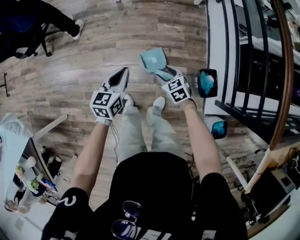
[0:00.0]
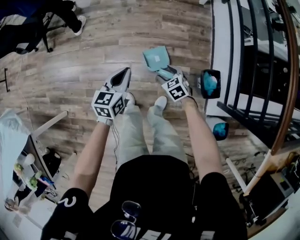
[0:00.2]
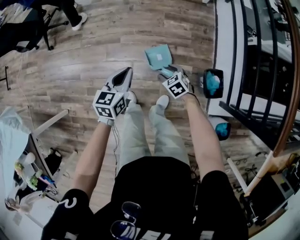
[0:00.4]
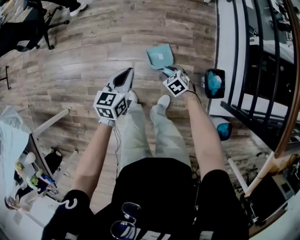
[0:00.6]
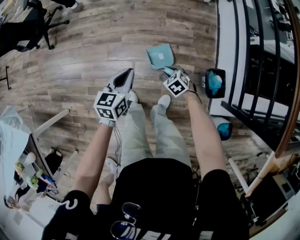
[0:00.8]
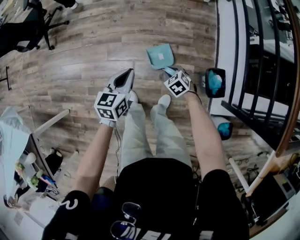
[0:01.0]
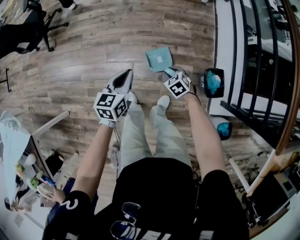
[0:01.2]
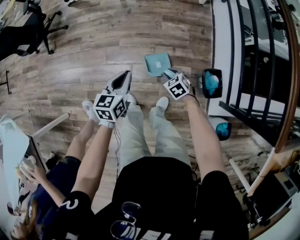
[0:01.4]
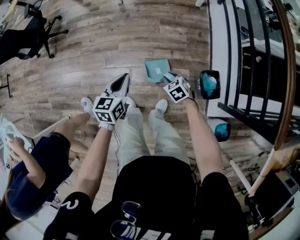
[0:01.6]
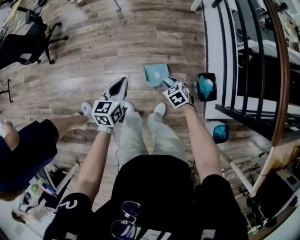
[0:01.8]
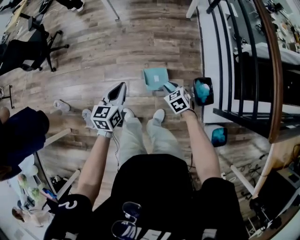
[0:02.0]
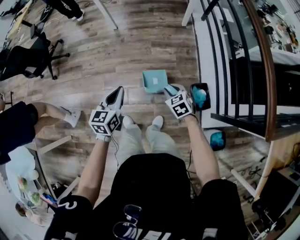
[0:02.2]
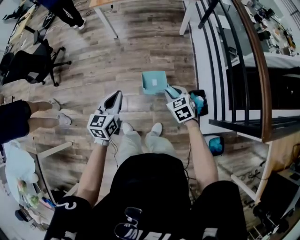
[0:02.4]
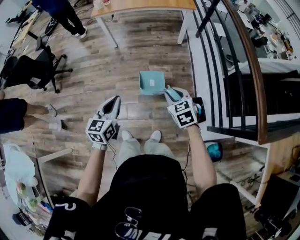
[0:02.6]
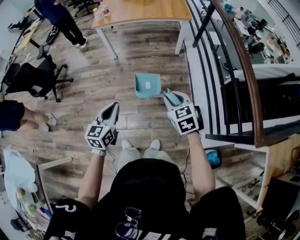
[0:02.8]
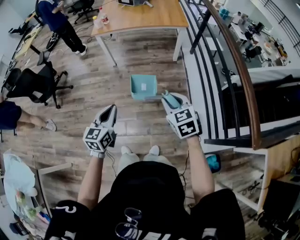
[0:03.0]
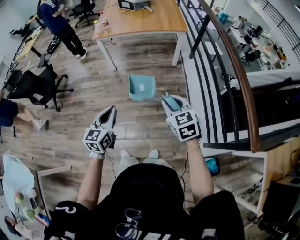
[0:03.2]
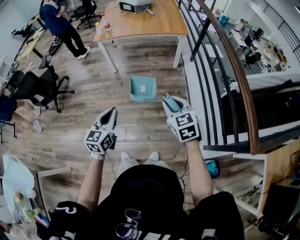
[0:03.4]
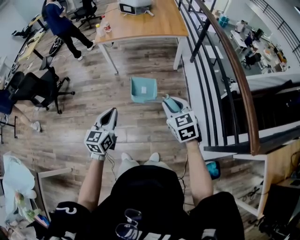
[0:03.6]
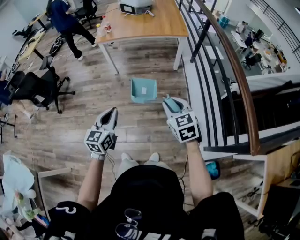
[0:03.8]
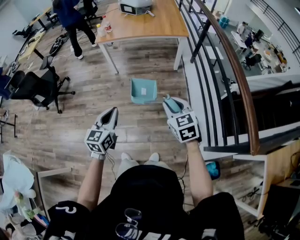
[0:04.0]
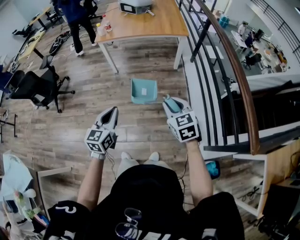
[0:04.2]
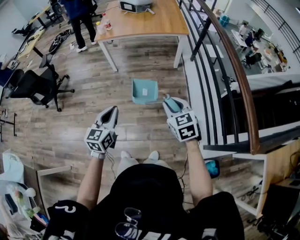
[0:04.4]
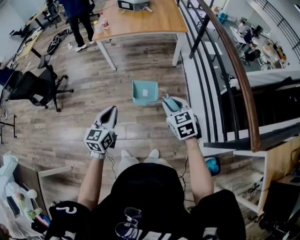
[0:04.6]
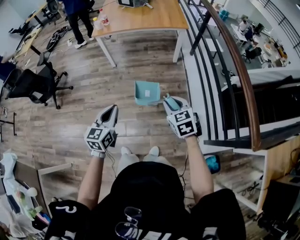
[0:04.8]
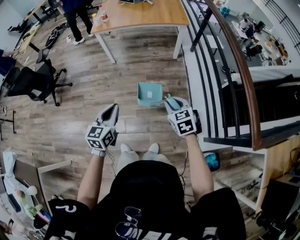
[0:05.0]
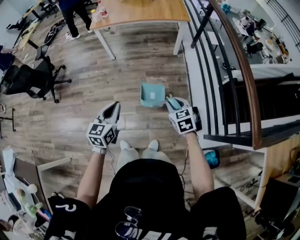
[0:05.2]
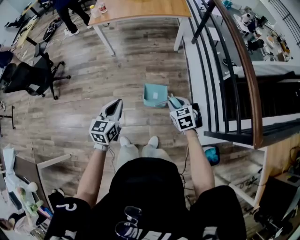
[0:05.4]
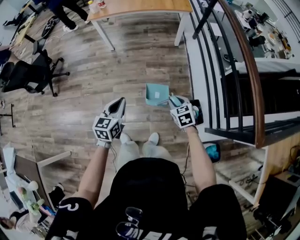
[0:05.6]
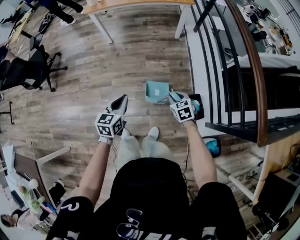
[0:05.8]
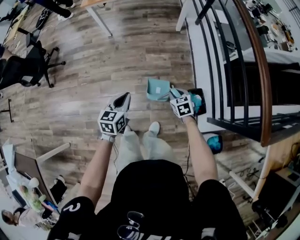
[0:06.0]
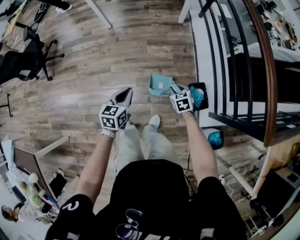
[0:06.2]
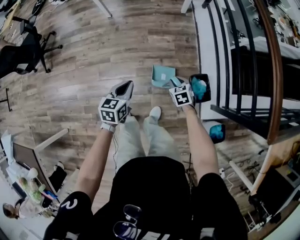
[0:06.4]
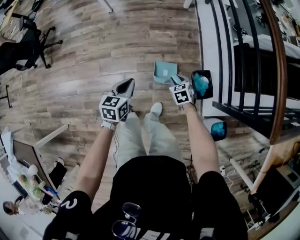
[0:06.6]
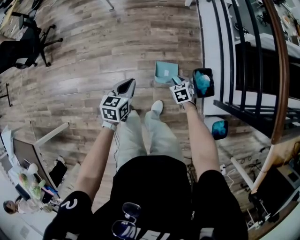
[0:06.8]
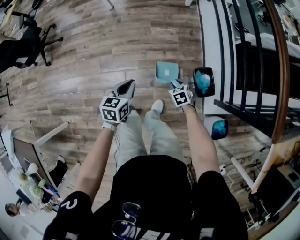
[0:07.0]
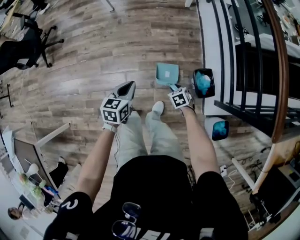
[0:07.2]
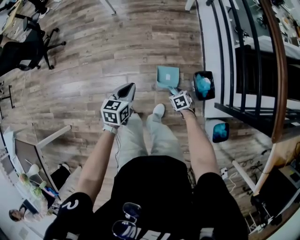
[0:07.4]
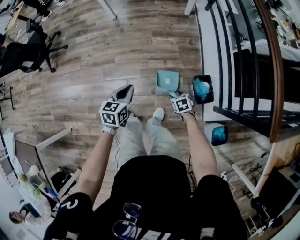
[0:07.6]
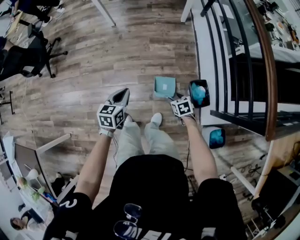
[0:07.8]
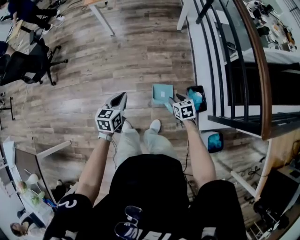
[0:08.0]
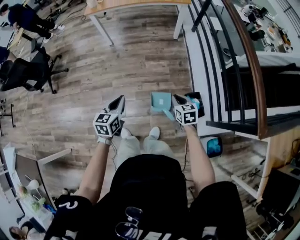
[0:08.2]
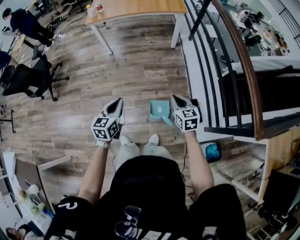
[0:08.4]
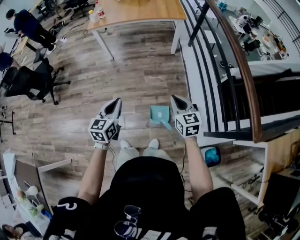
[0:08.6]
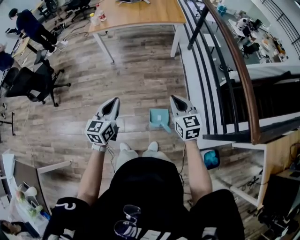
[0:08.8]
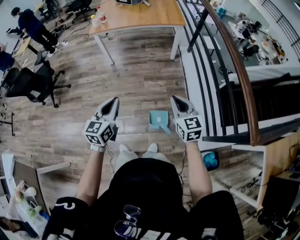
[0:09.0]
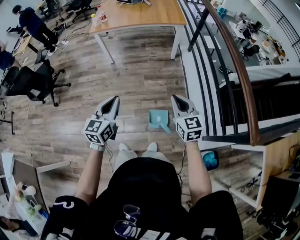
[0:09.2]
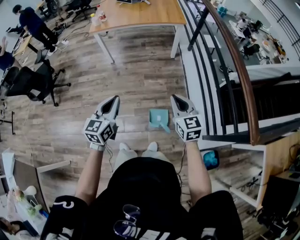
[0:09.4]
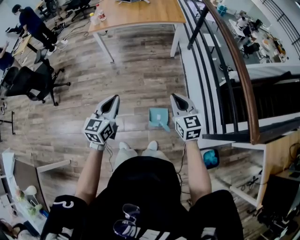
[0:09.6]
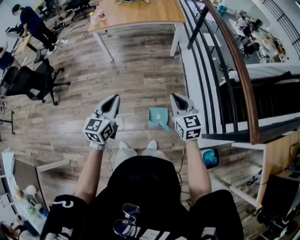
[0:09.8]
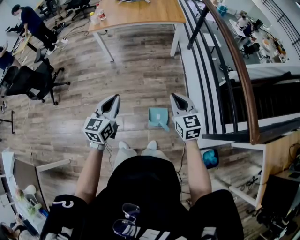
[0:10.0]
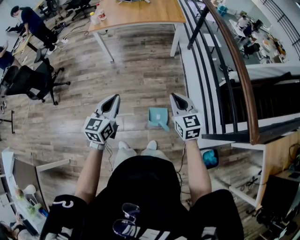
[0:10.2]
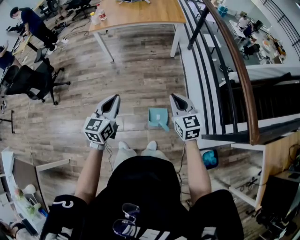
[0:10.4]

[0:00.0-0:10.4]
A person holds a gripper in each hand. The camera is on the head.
0:00.0 to 0:01.4: The right gripper shifts about 5 cm downward, and closes up.
0:01.4 to 0:03.0: The left gripper is displaced upward by roughly 25 cm. The right gripper is displaced upward by about 40 cm, and changes its angle by some 30 degrees.
0:03.0 to 0:04.4: The grippers move only a little.
0:04.4 to 0:06.0: The left gripper travels downward by about 20 cm. Meanwhile the right gripper goes roughly 30 cm downward, and turns by approximately 20 degrees.
0:06.0 to 0:07.4: The left gripper moves downward, some 10 cm, while the right gripper moves downward and backward, some 20 cm, turns by approximately 20 degrees, and opens up.
0:07.4 to 0:09.0: The right gripper shifts some 50 cm upward, tips its fingers upward by about 50 degrees, and closes up; the left gripper heads upward, covering some 25 cm, and swivels about 30 degrees.
0:09.0 to 0:10.4: The grippers move only a little.

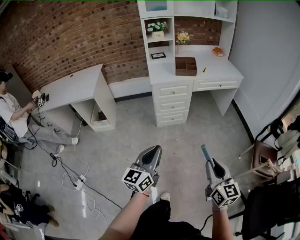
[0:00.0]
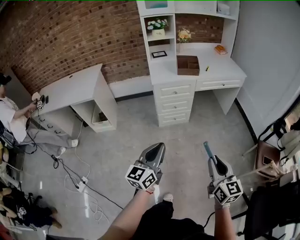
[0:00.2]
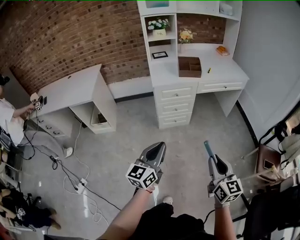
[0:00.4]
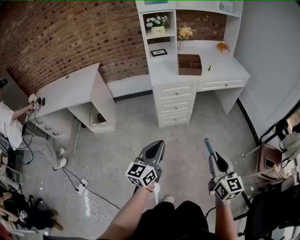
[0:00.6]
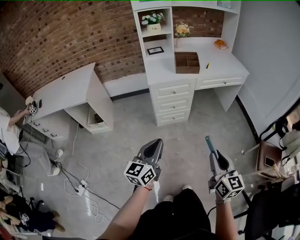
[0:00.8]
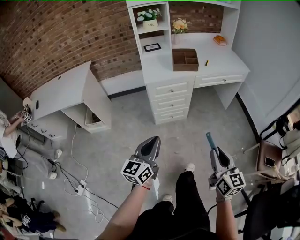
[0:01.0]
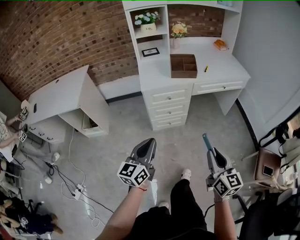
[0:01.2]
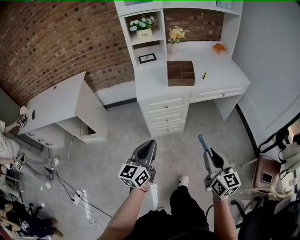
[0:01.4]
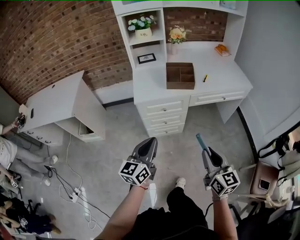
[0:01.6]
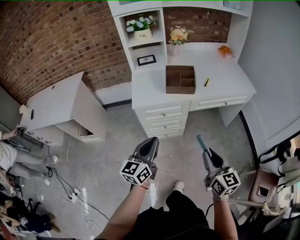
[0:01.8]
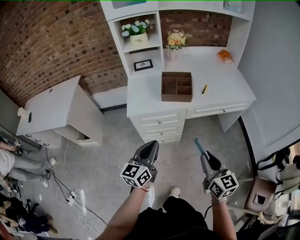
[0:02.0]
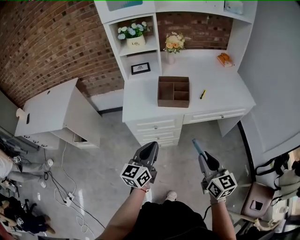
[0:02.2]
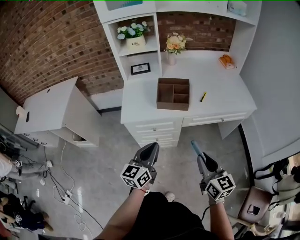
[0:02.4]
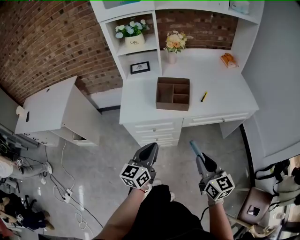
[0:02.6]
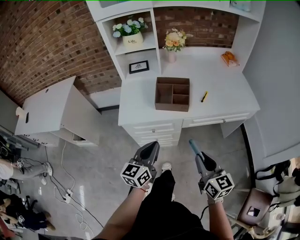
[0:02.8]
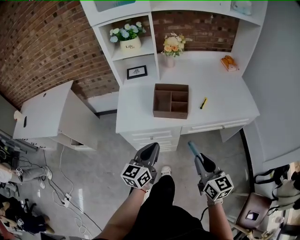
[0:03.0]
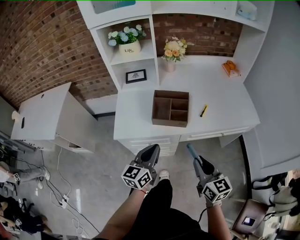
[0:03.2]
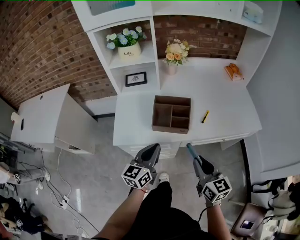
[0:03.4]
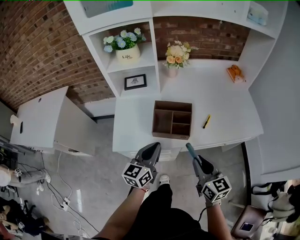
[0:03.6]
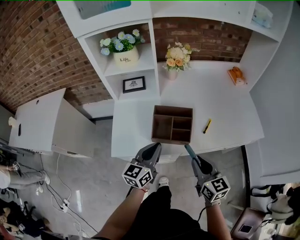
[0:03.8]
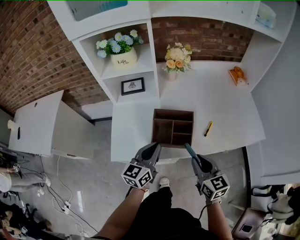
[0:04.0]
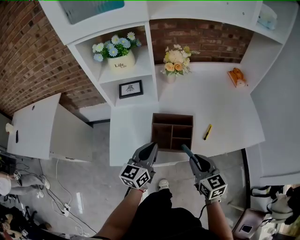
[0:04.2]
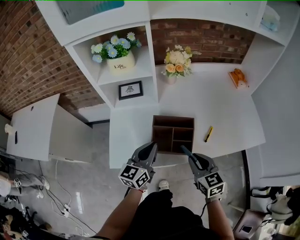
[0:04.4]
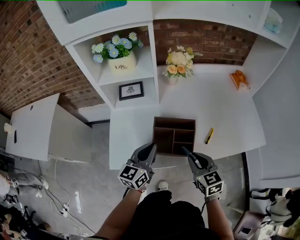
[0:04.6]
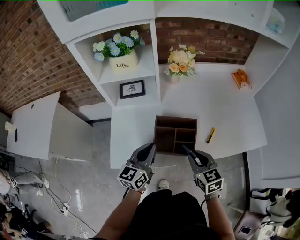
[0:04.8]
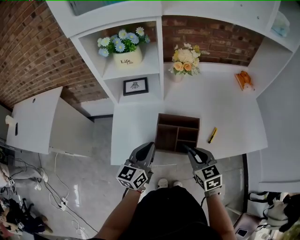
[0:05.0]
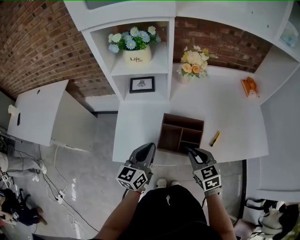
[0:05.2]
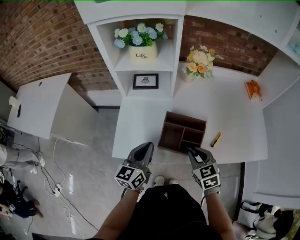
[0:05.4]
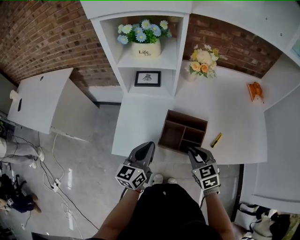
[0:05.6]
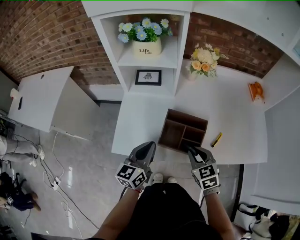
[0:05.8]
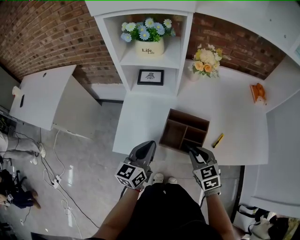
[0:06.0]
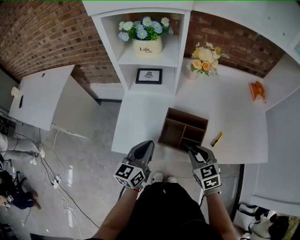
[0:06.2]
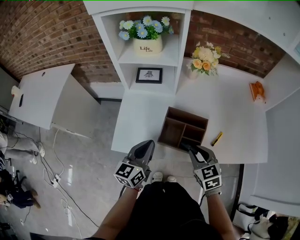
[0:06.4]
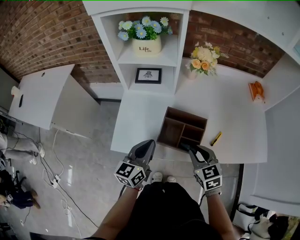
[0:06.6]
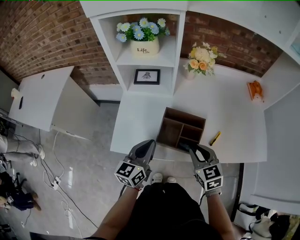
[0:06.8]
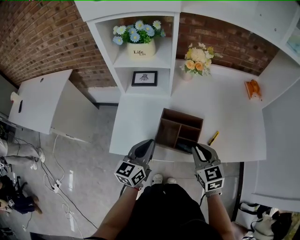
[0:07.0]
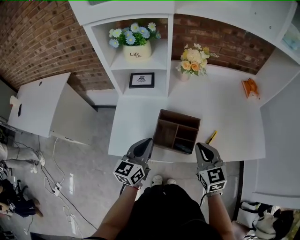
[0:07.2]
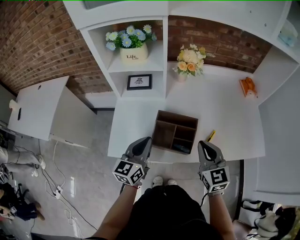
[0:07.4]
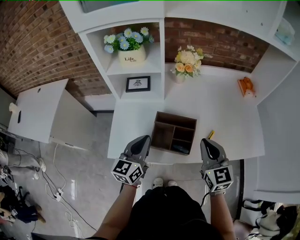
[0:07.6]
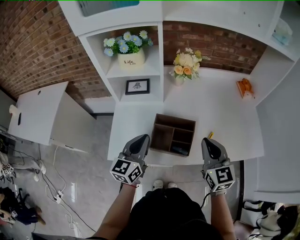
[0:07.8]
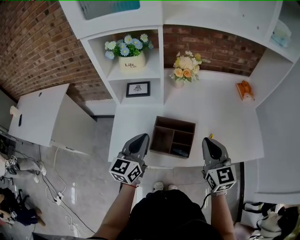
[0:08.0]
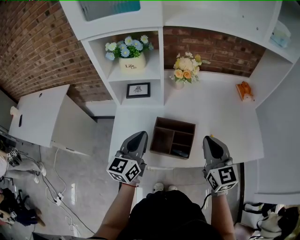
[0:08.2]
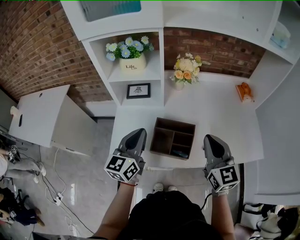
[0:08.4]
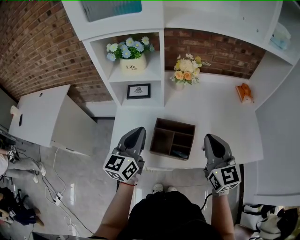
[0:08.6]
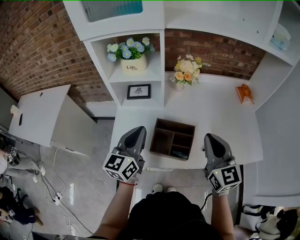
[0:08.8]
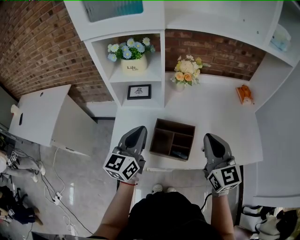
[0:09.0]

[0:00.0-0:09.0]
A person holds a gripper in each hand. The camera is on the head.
0:00.0 to 0:01.6: Both grippers travel together forward, some 35 cm.
0:01.6 to 0:03.0: The left gripper moves forward and to the right, approximately 25 cm; the right gripper heads forward, covering about 25 cm.
0:03.0 to 0:04.4: The two grippers go about 25 cm forward. The right gripper turns by about 20 degrees.
0:04.4 to 0:06.0: The right gripper ends up about 5 cm from where it was. The left gripper goes roughly 5 cm to the left.
0:06.0 to 0:07.6: The right gripper moves upward and to the right, some 15 cm, and turns by some 30 degrees.
0:07.6 to 0:09.0: The grippers both shift upward by roughly 10 cm.

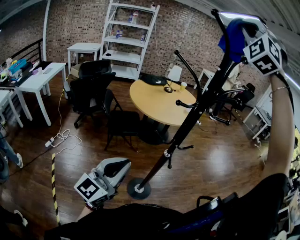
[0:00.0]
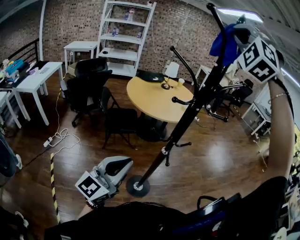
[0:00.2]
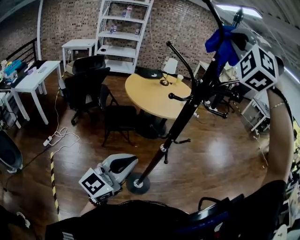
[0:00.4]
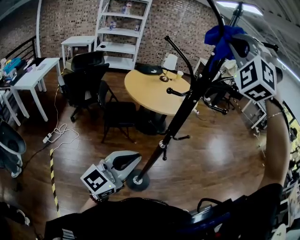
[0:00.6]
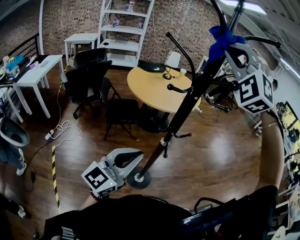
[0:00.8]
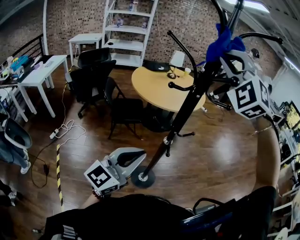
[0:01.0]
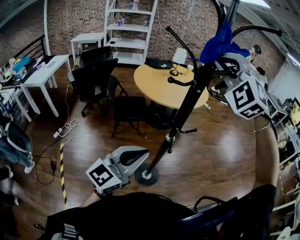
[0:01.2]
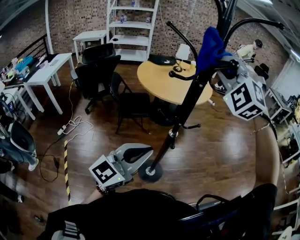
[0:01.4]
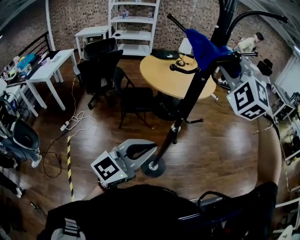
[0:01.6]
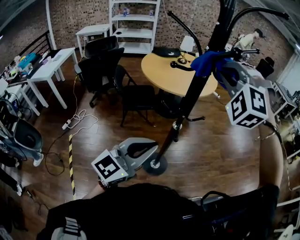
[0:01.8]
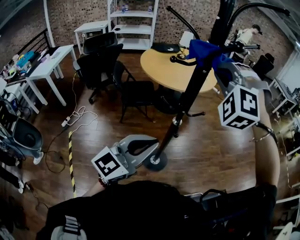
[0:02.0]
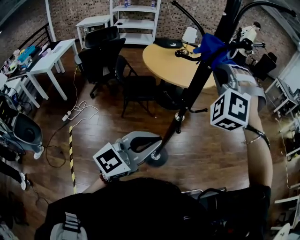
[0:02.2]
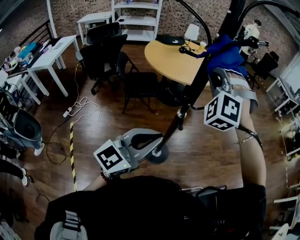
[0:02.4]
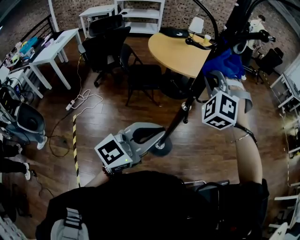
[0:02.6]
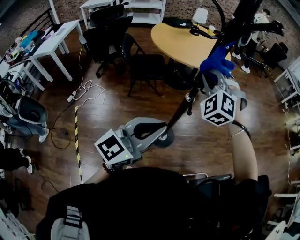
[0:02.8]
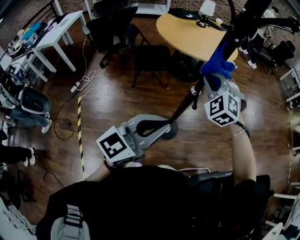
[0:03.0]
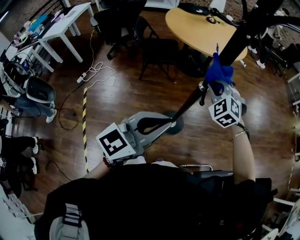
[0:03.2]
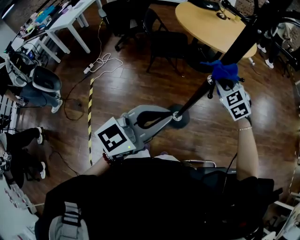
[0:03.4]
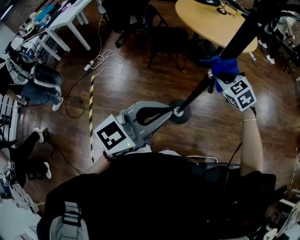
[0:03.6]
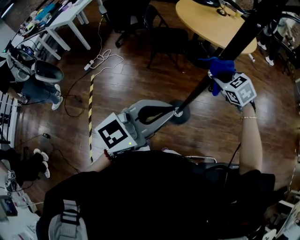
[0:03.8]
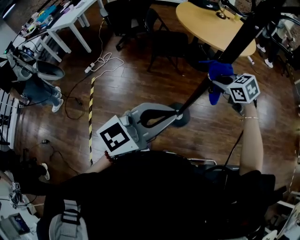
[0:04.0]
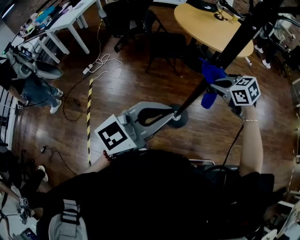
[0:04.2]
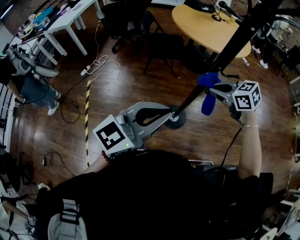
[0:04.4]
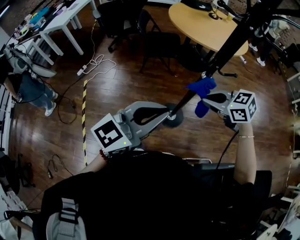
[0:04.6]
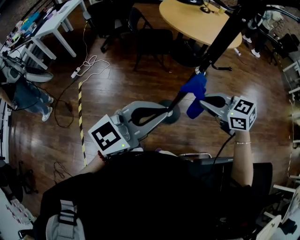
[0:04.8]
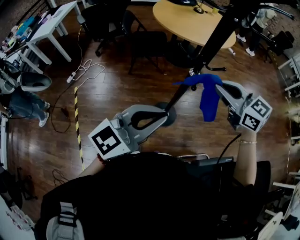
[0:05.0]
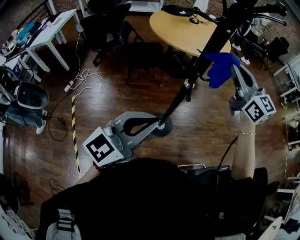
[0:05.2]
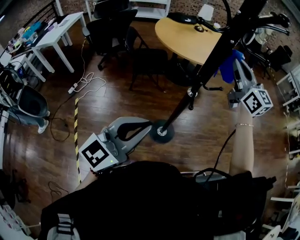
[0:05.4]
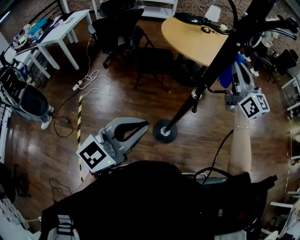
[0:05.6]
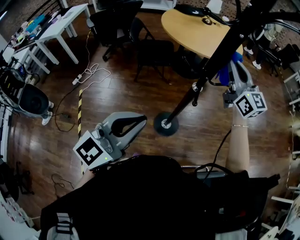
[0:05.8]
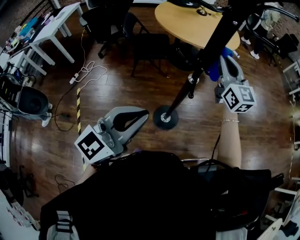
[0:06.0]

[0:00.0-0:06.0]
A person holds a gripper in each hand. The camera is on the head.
0:00.0 to 0:01.6: The left gripper shifts roughly 10 cm to the right; the right gripper shifts about 30 cm downward, and swivels some 30 degrees.
0:01.6 to 0:03.0: The left gripper changes place by approximately 5 cm. Meanwhile the right gripper shifts roughly 30 cm downward, and turns by roughly 20 degrees.
0:03.0 to 0:04.4: The right gripper shifts roughly 10 cm downward, and turns by about 70 degrees.
0:04.4 to 0:06.0: The right gripper travels upward, forward and to the right by some 20 cm, and angles its fingers upward, by roughly 50 degrees.
